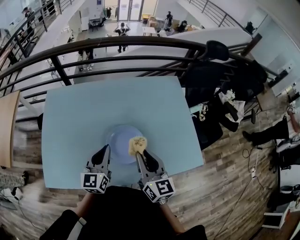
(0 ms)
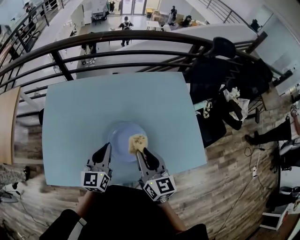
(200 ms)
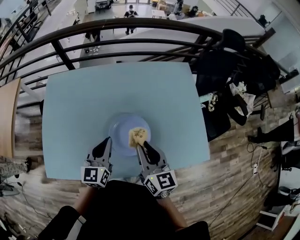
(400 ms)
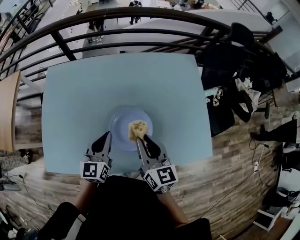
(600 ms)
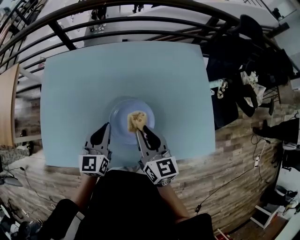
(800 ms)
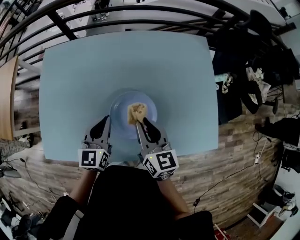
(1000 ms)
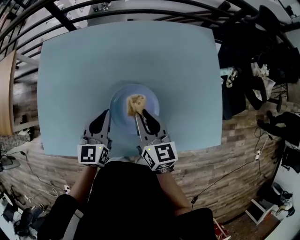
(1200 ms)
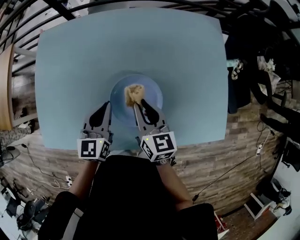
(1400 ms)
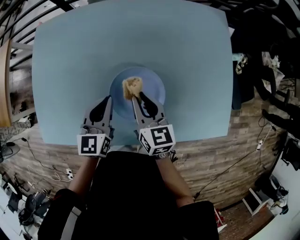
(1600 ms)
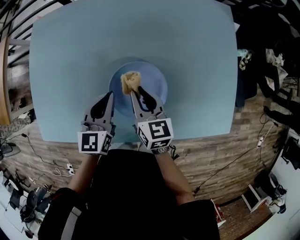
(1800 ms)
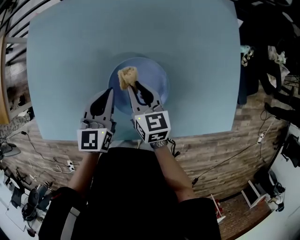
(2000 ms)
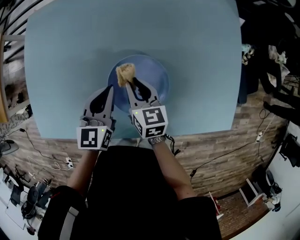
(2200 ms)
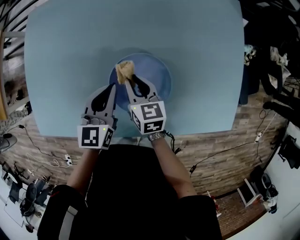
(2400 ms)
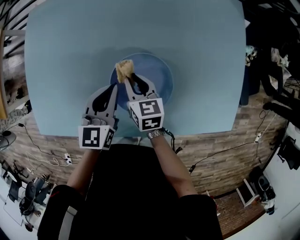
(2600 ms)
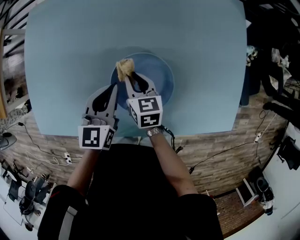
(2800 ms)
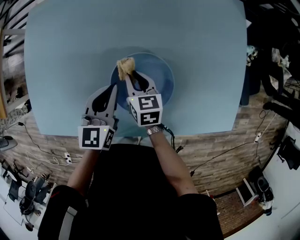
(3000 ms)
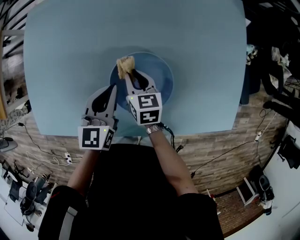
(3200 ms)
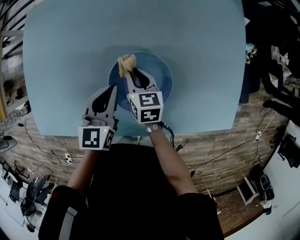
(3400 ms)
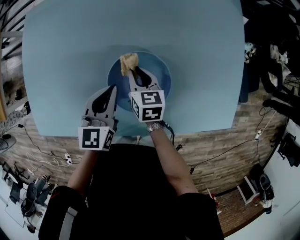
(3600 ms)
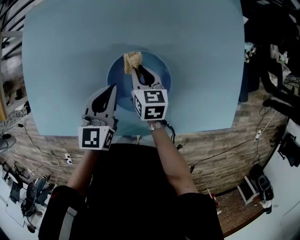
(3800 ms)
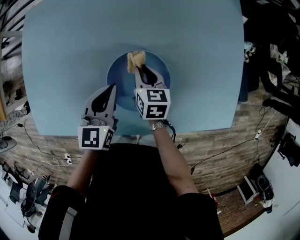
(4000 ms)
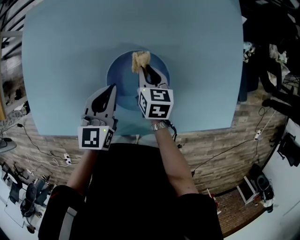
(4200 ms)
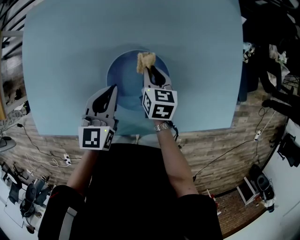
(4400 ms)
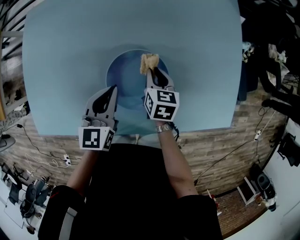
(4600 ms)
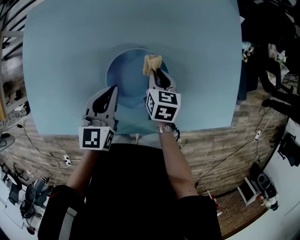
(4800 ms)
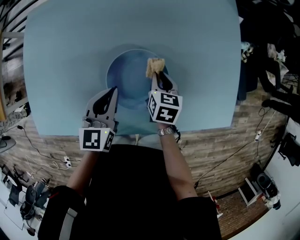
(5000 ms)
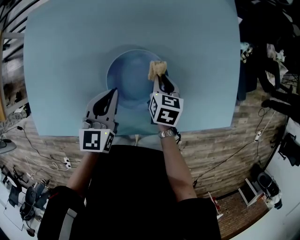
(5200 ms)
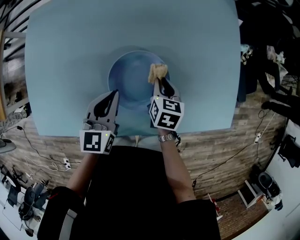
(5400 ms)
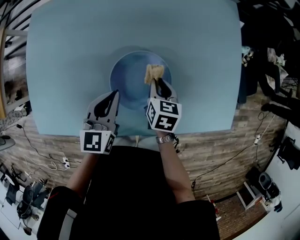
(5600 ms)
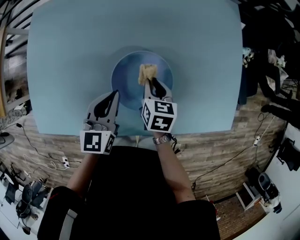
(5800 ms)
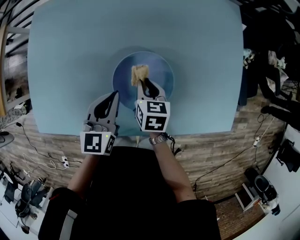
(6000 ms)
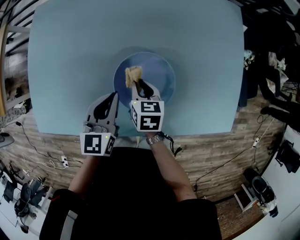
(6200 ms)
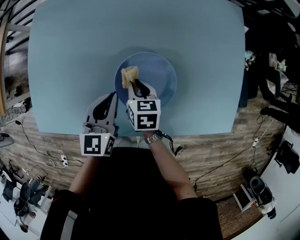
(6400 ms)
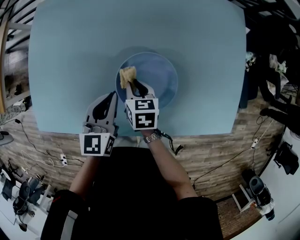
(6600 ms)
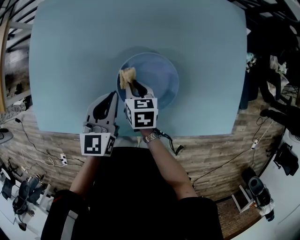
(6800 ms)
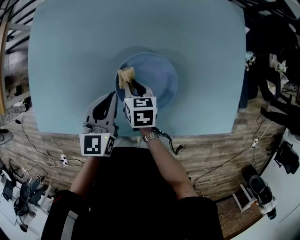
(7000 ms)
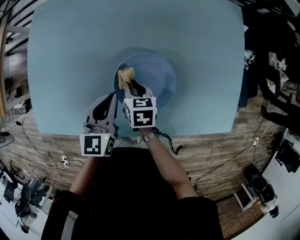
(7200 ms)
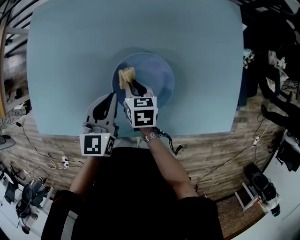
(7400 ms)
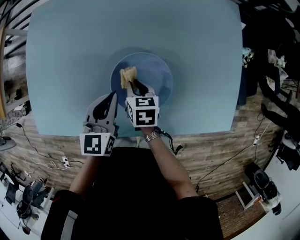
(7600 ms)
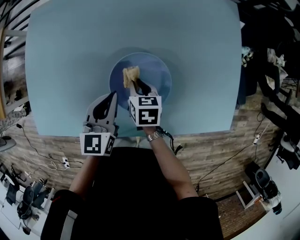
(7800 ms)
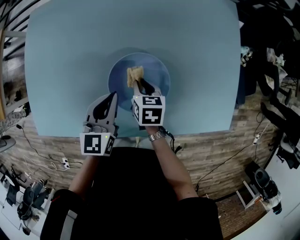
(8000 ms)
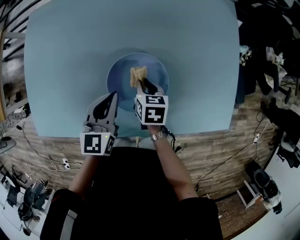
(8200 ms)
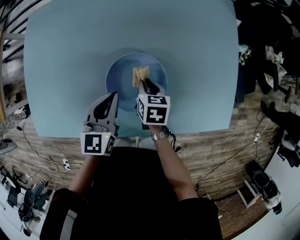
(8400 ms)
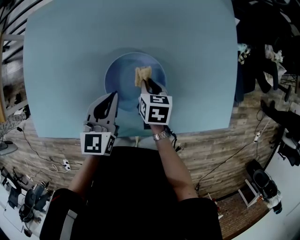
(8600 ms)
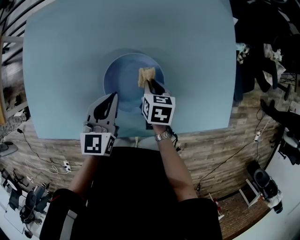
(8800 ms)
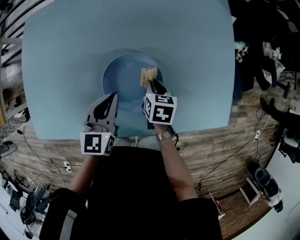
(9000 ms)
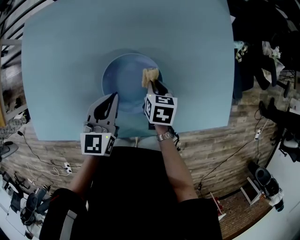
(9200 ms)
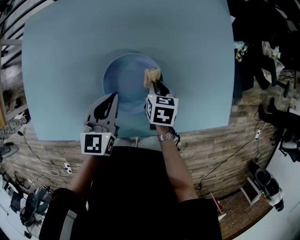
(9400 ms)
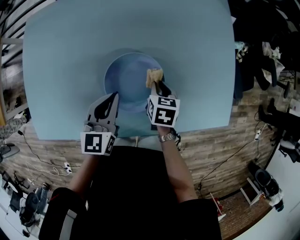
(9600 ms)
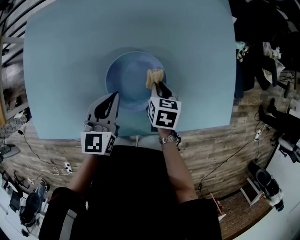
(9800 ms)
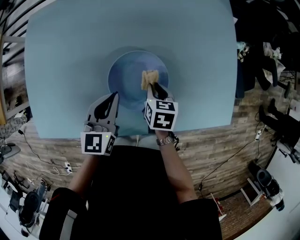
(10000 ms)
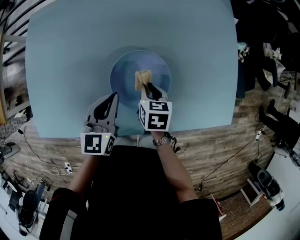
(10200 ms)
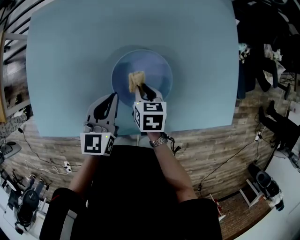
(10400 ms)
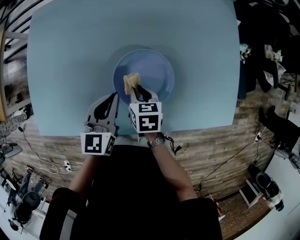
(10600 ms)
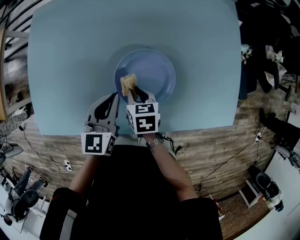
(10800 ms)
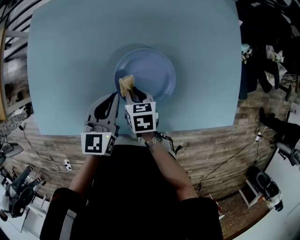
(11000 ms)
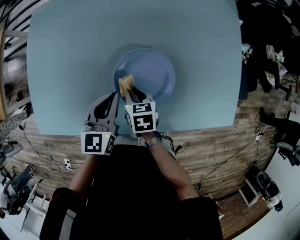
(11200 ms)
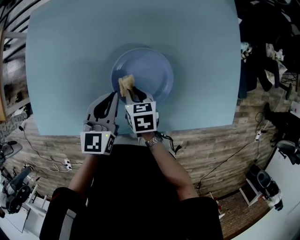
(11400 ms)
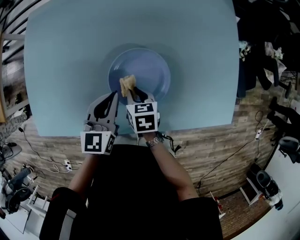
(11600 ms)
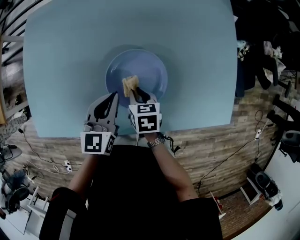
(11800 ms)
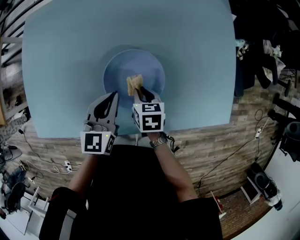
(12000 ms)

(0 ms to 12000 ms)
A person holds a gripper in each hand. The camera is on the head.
0 ms - 1600 ms: The left gripper moves downward and forward, approximately 15 cm. Meanwhile the right gripper travels downward and forward by approximately 20 cm, and rotates some 20 degrees.
1600 ms - 3000 ms: The right gripper goes some 15 cm downward.
3000 ms - 4400 ms: The right gripper heads to the right, covering roughly 10 cm.
4400 ms - 6000 ms: The right gripper changes place by some 5 cm.
7600 ms - 9000 ms: The right gripper travels to the right by roughly 10 cm.
9000 ms - 10400 ms: The right gripper shifts some 10 cm to the left.
10400 ms - 12000 ms: There are only small adjustments of the grippers.

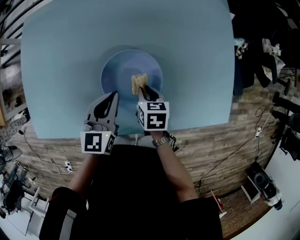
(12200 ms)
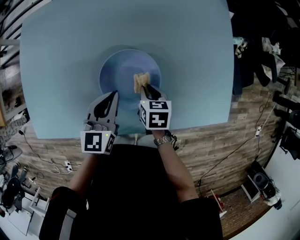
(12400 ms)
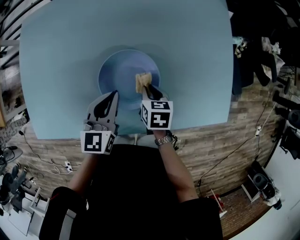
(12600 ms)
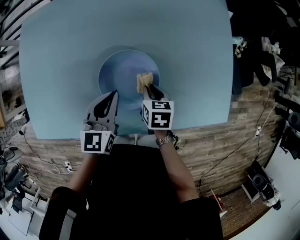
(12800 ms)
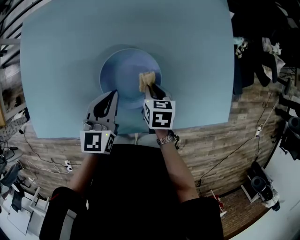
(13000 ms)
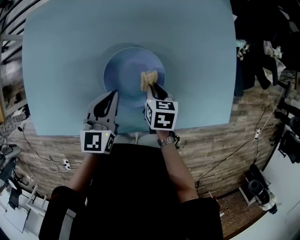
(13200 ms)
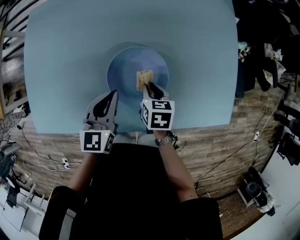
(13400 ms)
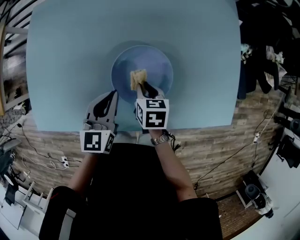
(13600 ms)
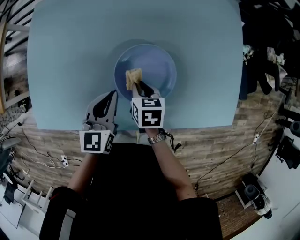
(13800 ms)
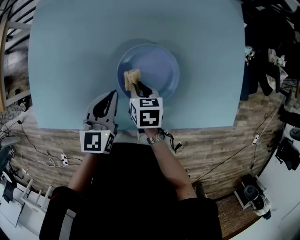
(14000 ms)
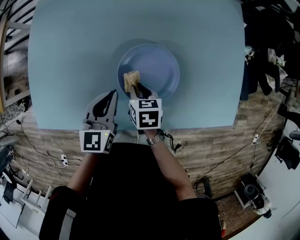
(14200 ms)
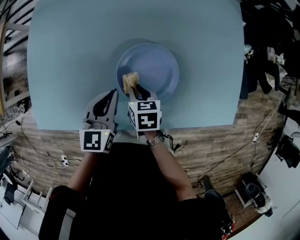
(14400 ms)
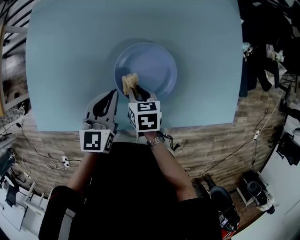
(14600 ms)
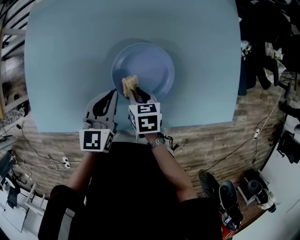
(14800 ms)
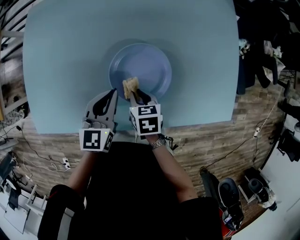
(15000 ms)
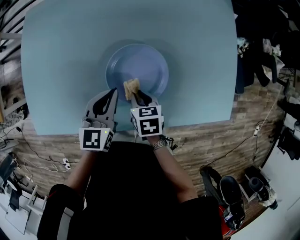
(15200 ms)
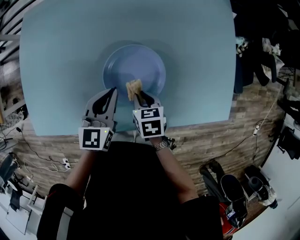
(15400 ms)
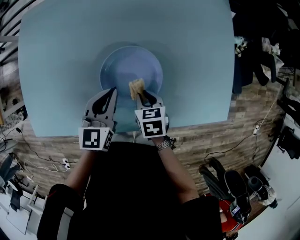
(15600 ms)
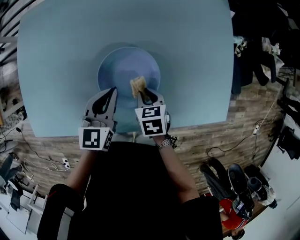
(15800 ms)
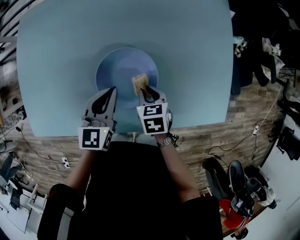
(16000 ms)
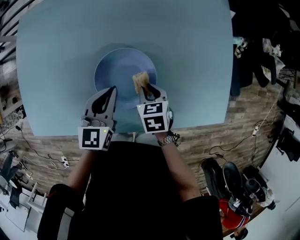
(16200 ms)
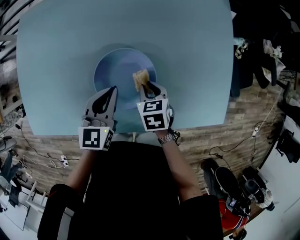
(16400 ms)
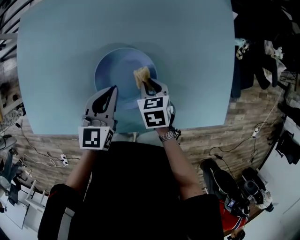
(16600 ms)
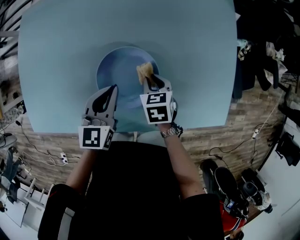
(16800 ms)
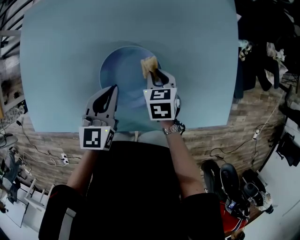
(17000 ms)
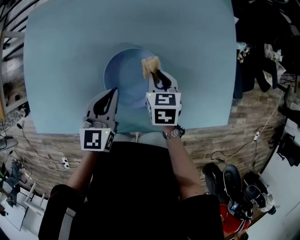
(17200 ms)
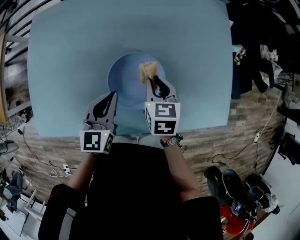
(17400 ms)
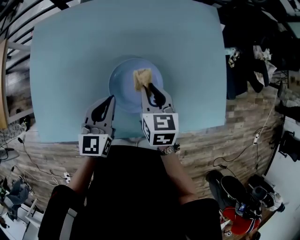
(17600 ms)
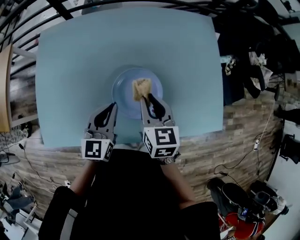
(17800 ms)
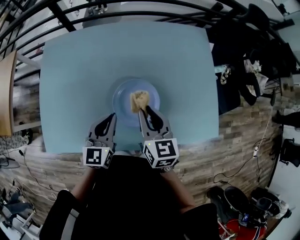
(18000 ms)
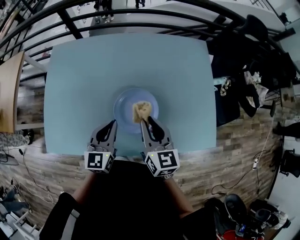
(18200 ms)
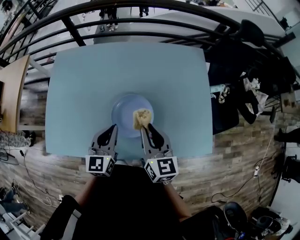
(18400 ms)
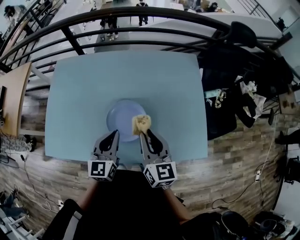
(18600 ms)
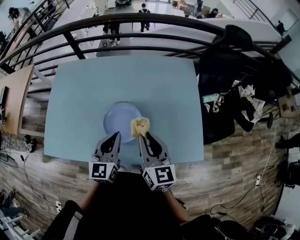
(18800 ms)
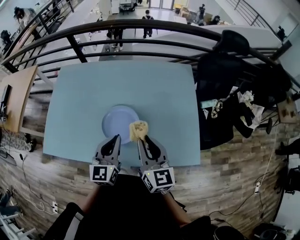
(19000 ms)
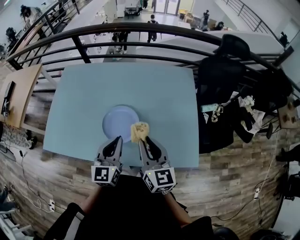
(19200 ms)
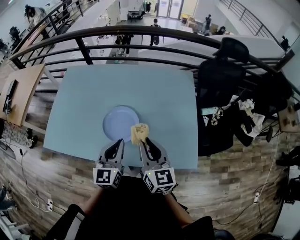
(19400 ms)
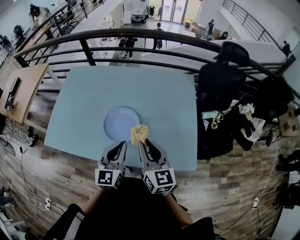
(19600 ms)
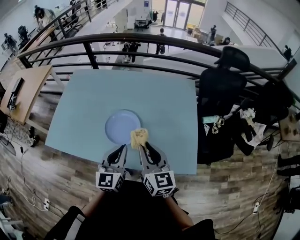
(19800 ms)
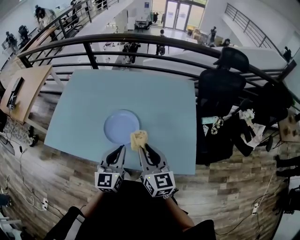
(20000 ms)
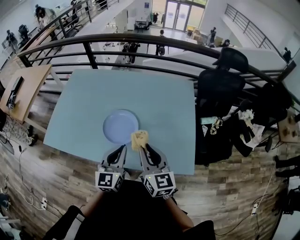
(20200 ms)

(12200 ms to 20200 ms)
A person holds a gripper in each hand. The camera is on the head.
12200 ms - 13800 ms: The grippers both shift to the left by roughly 5 cm.
13800 ms - 15400 ms: The right gripper shifts by some 5 cm.
15400 ms - 17000 ms: The right gripper shifts some 10 cm forward and to the right.
17000 ms - 18600 ms: The right gripper is displaced upward and backward by some 30 cm, and points its fingers some 50 degrees further upward. Meanwhile the left gripper heads upward and backward, covering about 15 cm.
18600 ms - 20200 ms: Both grippers move backward and to the right, about 15 cm.

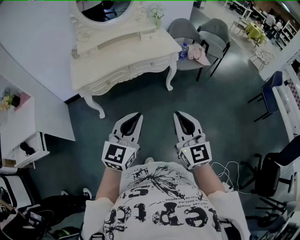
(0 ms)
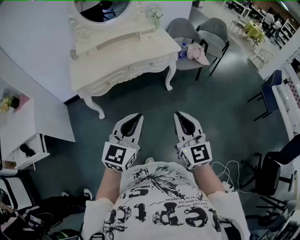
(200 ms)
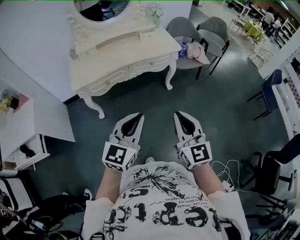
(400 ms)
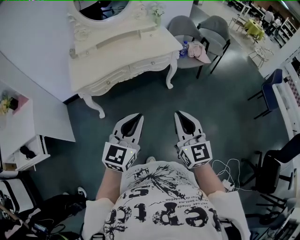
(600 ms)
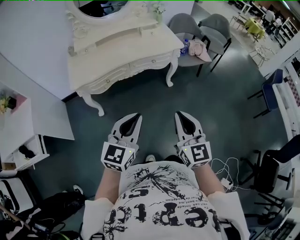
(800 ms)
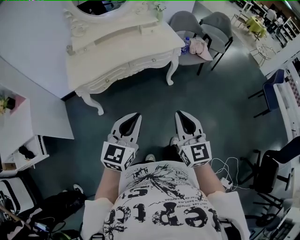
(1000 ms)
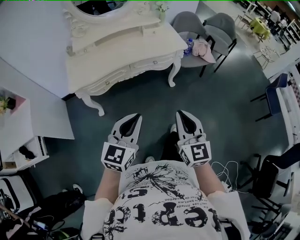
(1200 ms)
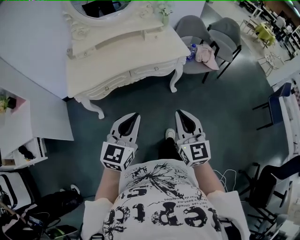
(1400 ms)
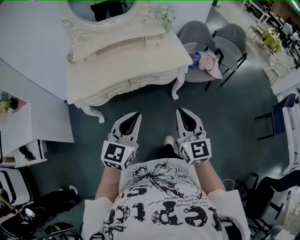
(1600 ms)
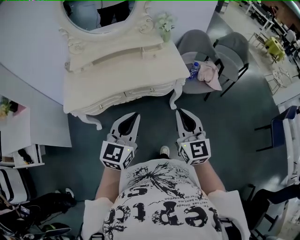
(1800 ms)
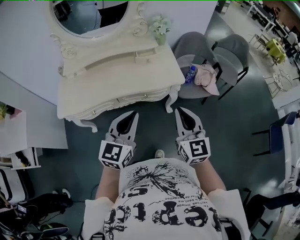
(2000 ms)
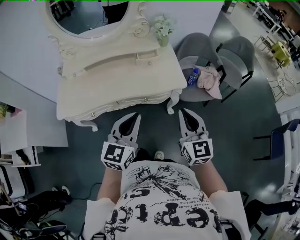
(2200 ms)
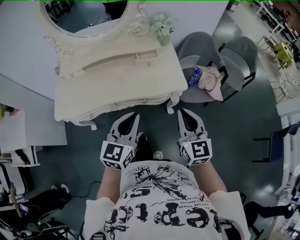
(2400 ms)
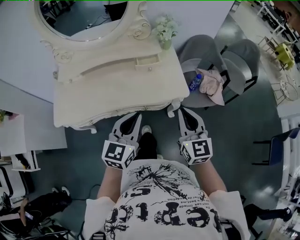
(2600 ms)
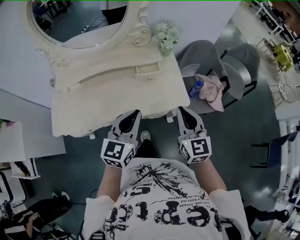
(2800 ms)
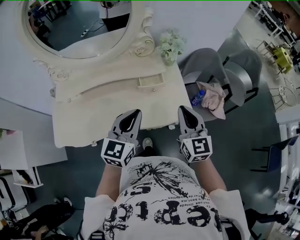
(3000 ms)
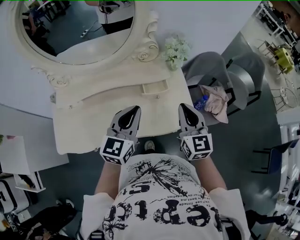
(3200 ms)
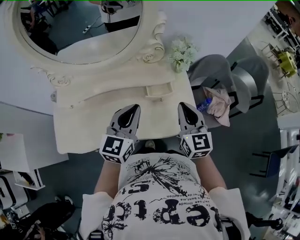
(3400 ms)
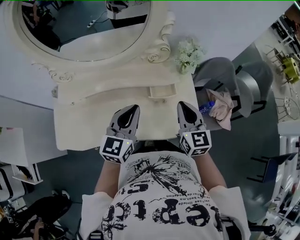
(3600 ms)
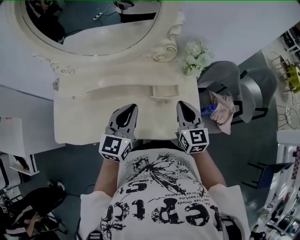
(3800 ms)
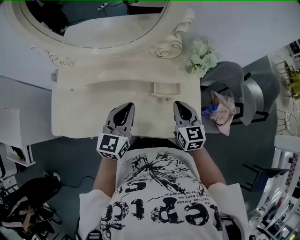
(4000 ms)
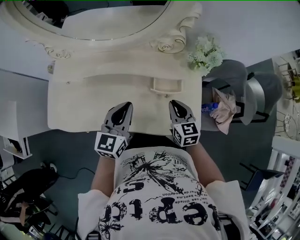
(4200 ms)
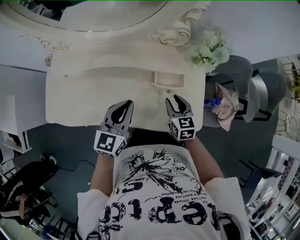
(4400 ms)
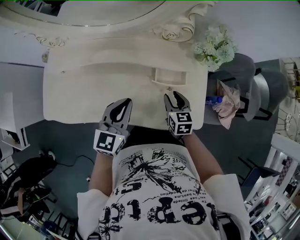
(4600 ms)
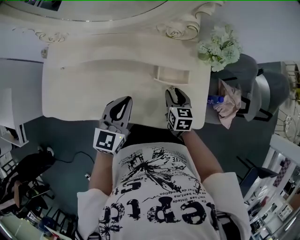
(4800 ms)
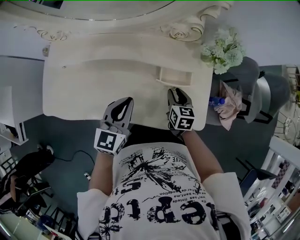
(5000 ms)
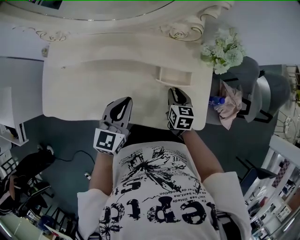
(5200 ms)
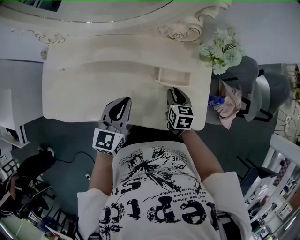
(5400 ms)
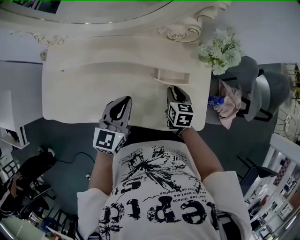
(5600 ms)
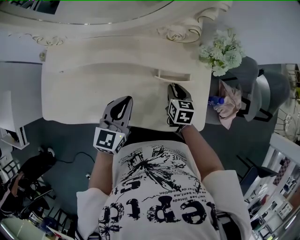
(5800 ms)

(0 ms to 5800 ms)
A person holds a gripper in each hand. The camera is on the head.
0 ms - 1400 ms: Both grippers travel together forward, some 15 cm.
1400 ms - 2800 ms: The pair of grippers is taken forward, approximately 40 cm.
2800 ms - 4400 ms: The left gripper shifts about 25 cm forward, downward and to the left. Meanwhile the right gripper travels forward and downward by roughly 30 cm, rotates about 30 degrees, and opens up.
4400 ms - 5800 ms: The right gripper goes approximately 10 cm forward and downward.
